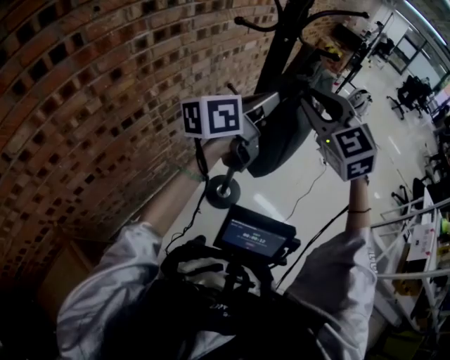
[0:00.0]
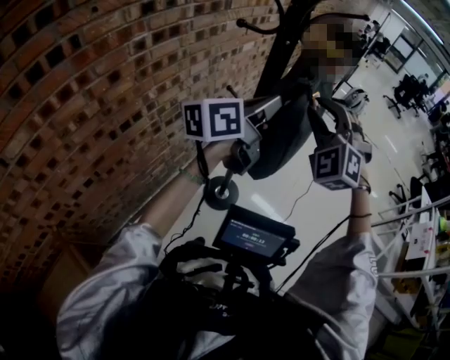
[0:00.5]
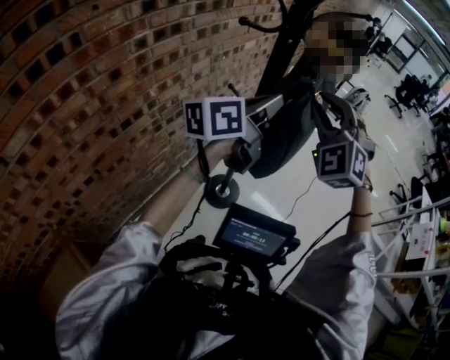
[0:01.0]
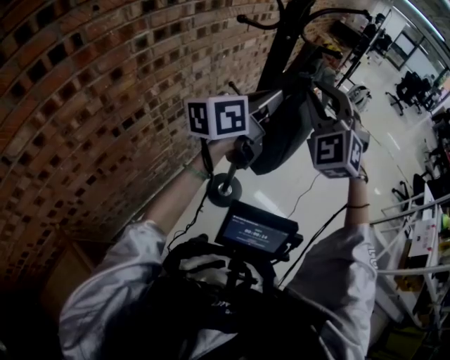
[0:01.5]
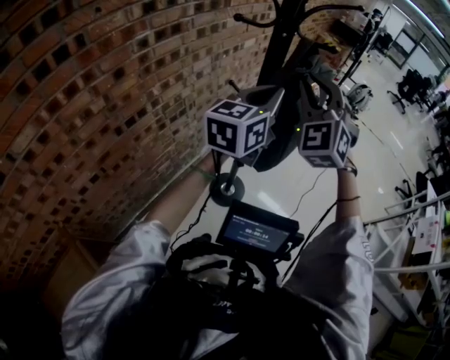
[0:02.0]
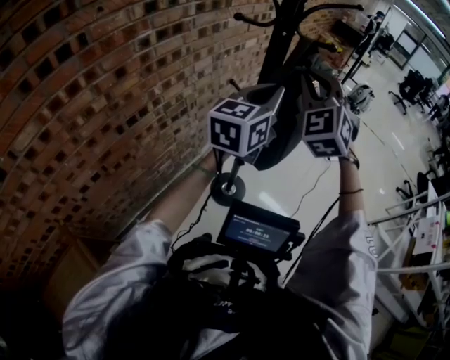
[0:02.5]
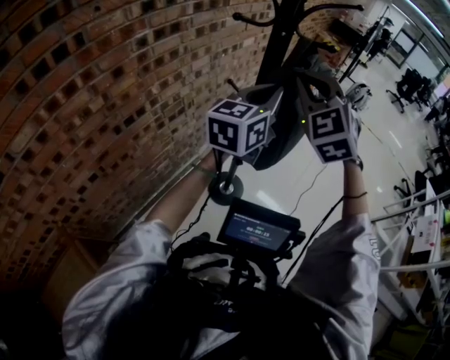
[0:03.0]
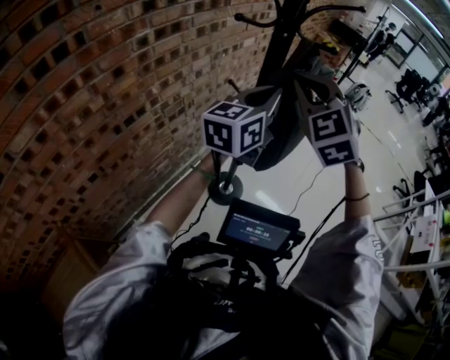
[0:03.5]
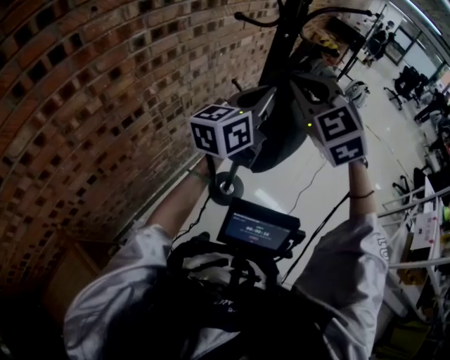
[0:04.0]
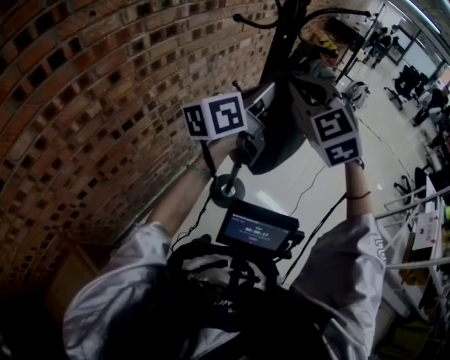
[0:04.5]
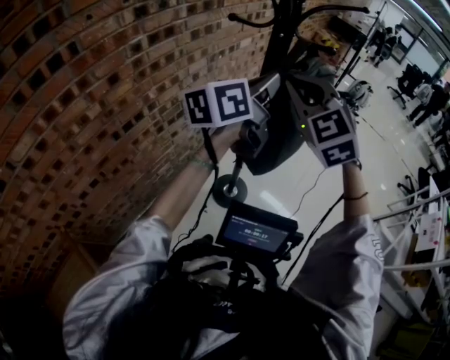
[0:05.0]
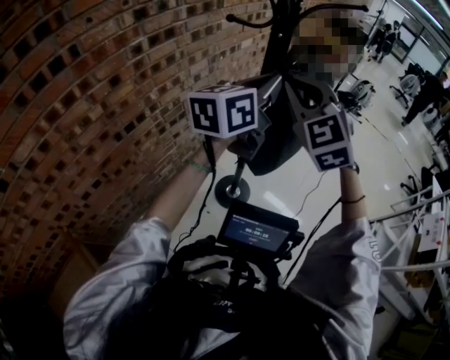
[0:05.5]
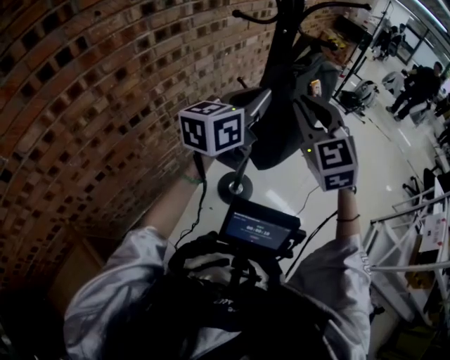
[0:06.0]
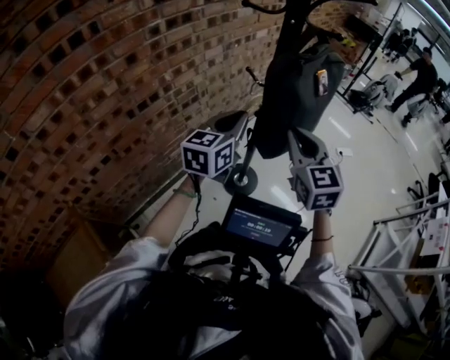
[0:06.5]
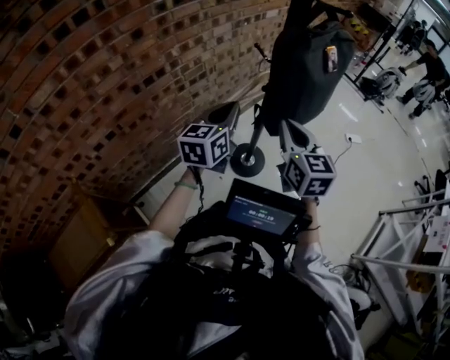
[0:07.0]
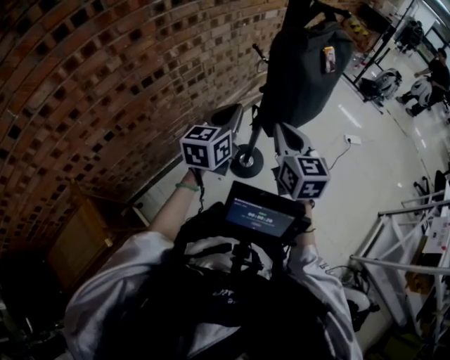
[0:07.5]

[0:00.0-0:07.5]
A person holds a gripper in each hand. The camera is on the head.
0:00.0 to 0:02.0: The right gripper turns by roughly 30 degrees. The left gripper changes its angle by some 30 degrees.
0:02.0 to 0:04.0: The right gripper turns by about 20 degrees.
0:04.0 to 0:05.5: There are only small adjustments of the grippers.
0:05.5 to 0:07.5: The right gripper heads downward and backward, covering approximately 20 cm, and rotates around the line of its fingers by some 50 degrees, clockwise from behind; the left gripper heads downward, to the left and backward, covering approximately 25 cm, and changes its angle by roughly 30 degrees.

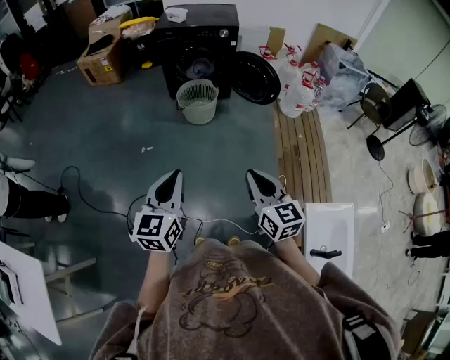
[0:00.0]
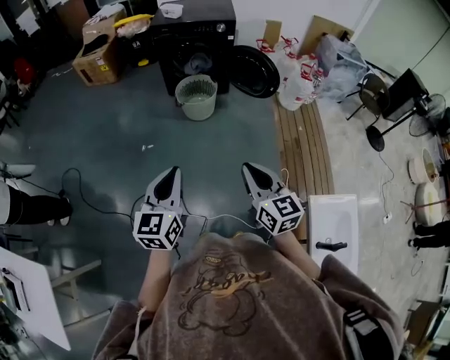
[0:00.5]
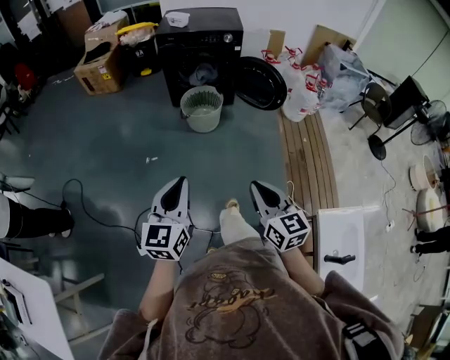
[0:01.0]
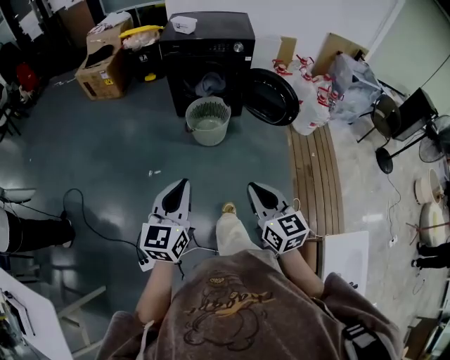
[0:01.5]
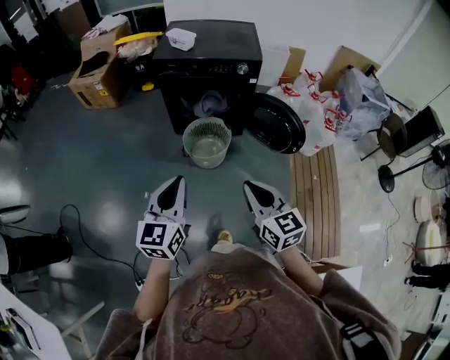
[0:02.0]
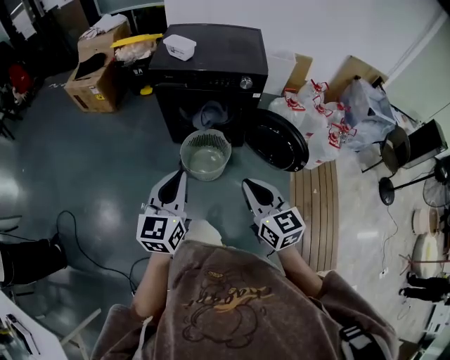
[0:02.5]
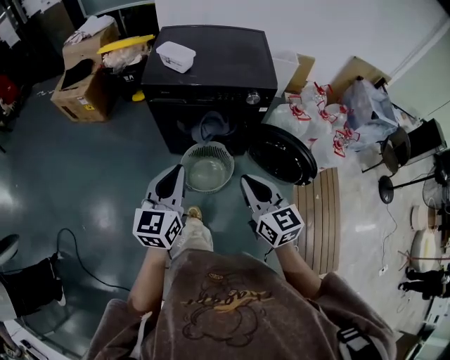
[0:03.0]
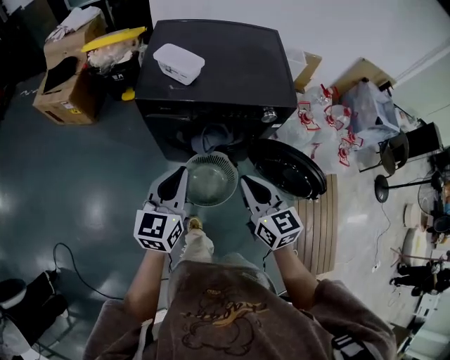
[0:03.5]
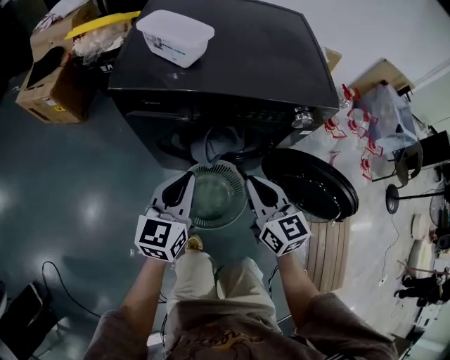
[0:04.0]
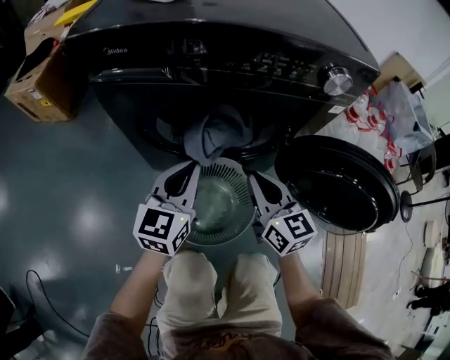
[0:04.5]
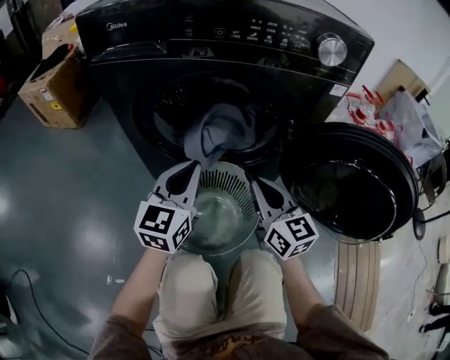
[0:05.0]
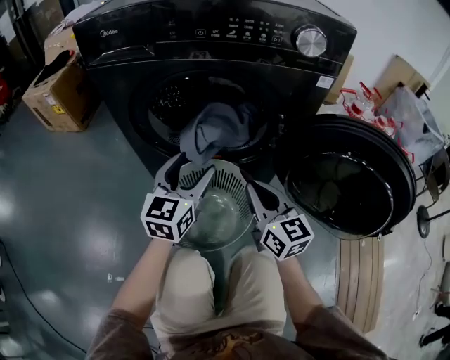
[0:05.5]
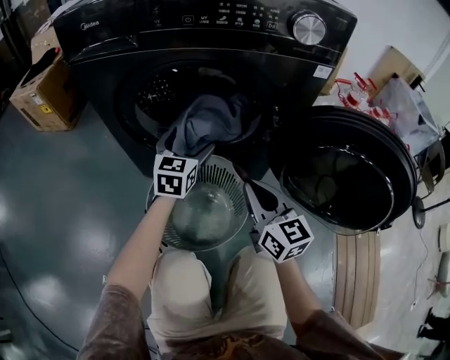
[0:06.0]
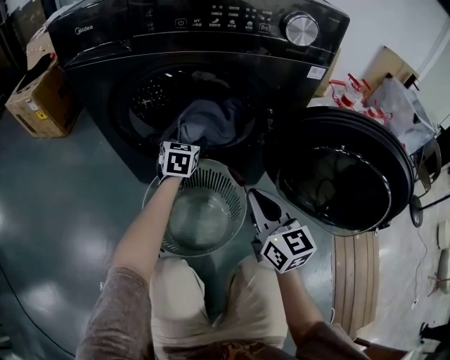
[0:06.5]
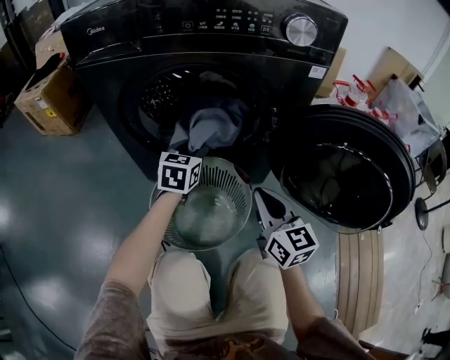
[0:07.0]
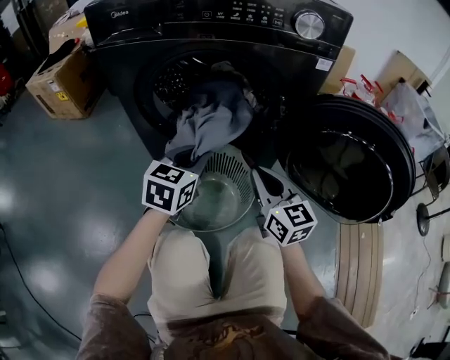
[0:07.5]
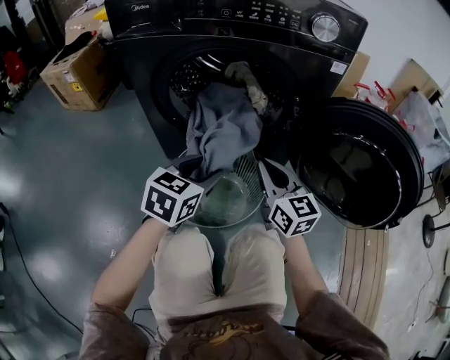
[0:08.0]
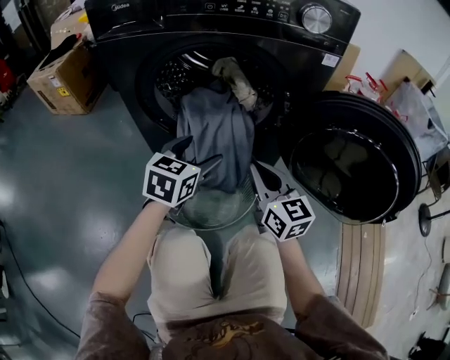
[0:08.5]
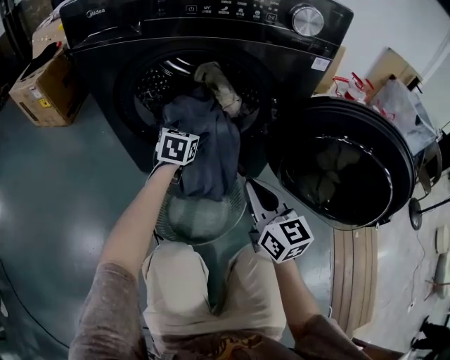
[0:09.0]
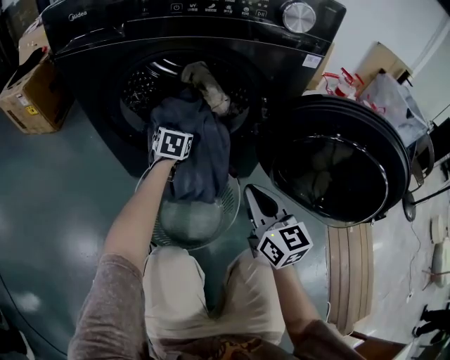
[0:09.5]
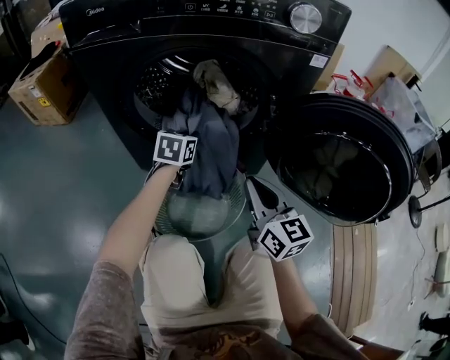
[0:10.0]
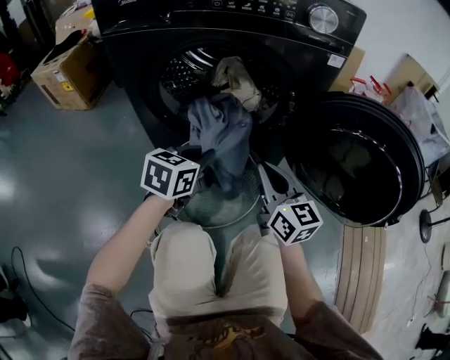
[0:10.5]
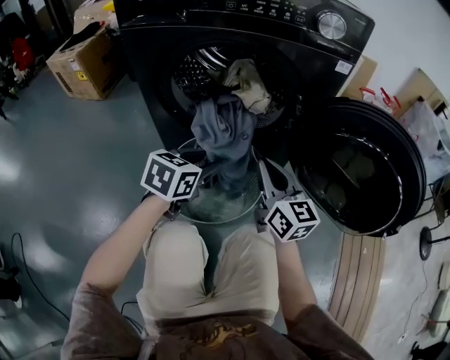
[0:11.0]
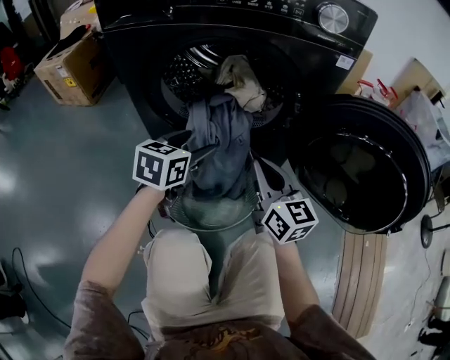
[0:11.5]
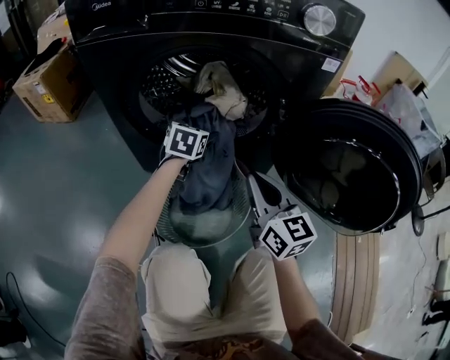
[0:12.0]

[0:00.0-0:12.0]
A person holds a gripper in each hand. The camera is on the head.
0:00.0 to 0:02.0: Both grippers move forward, some 40 cm.
0:02.0 to 0:04.0: Both grippers are carried forward, approximately 50 cm. Both grippers move downward, about 25 cm.
0:04.0 to 0:06.0: The right gripper goes approximately 25 cm downward. The left gripper moves downward and forward, approximately 30 cm, and opens up.
0:06.0 to 0:08.0: The left gripper shifts approximately 20 cm backward, and closes.
0:08.0 to 0:10.0: The left gripper heads forward and downward, covering approximately 20 cm, and closes up.
0:10.0 to 0:12.0: The left gripper reaches about 15 cm backward, then returns, and opens up.

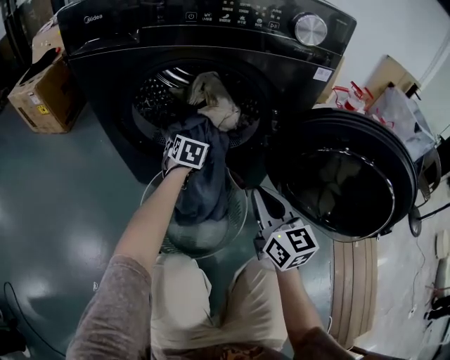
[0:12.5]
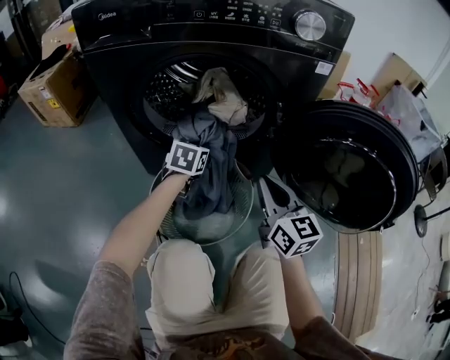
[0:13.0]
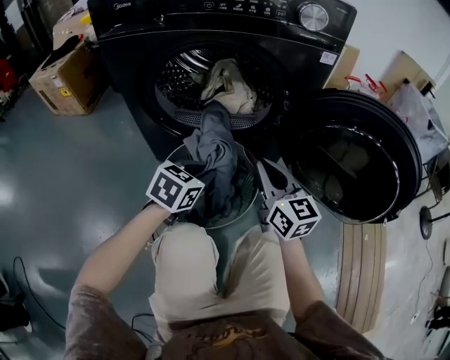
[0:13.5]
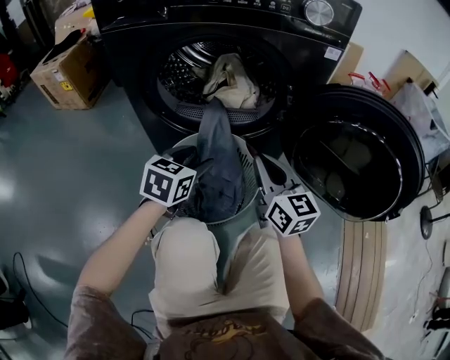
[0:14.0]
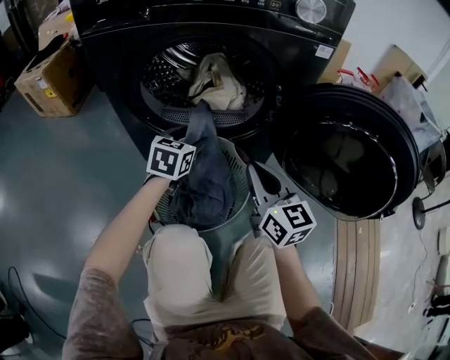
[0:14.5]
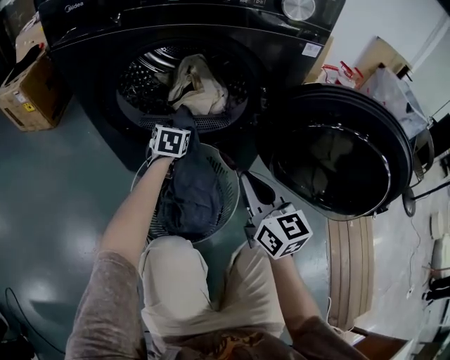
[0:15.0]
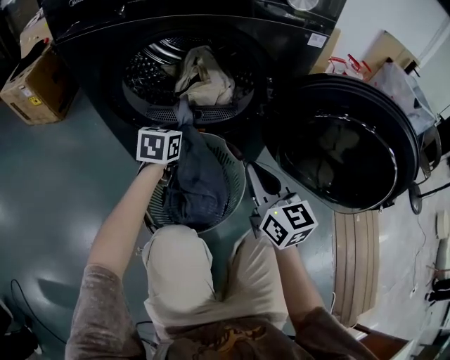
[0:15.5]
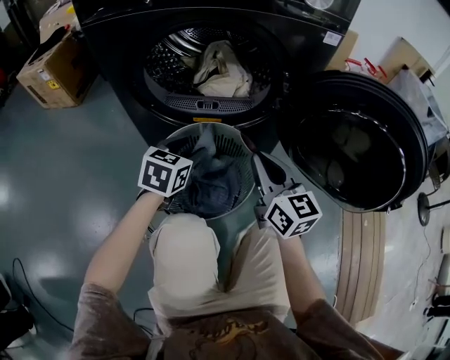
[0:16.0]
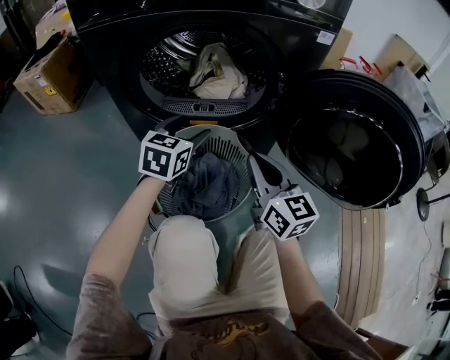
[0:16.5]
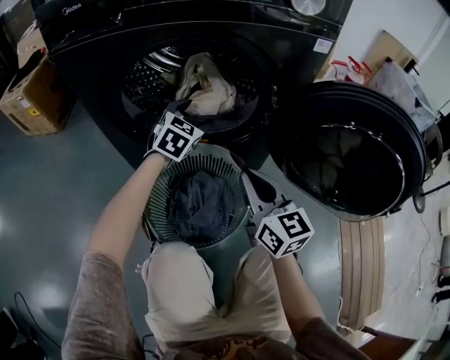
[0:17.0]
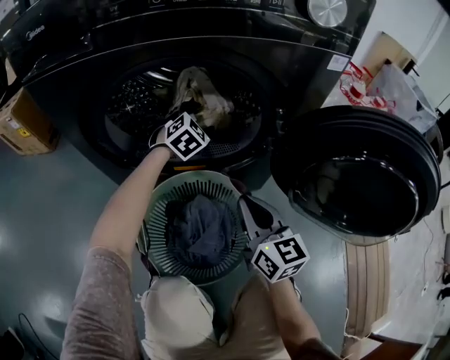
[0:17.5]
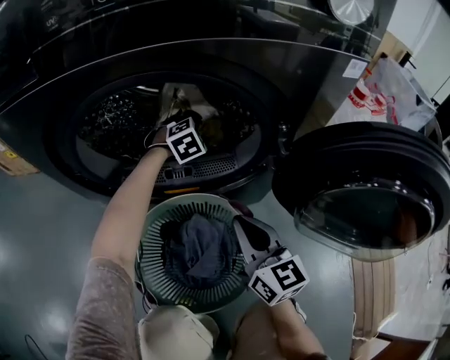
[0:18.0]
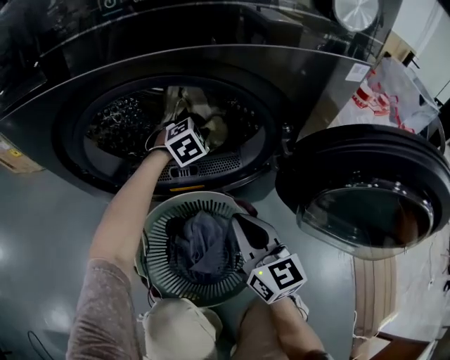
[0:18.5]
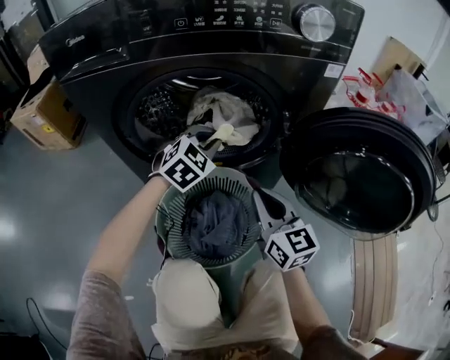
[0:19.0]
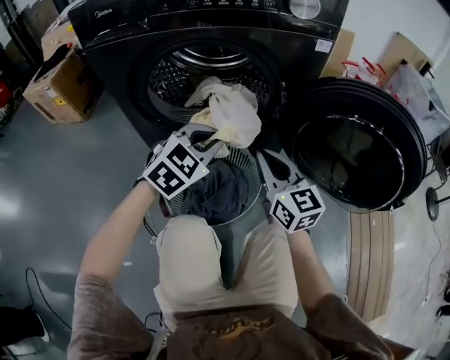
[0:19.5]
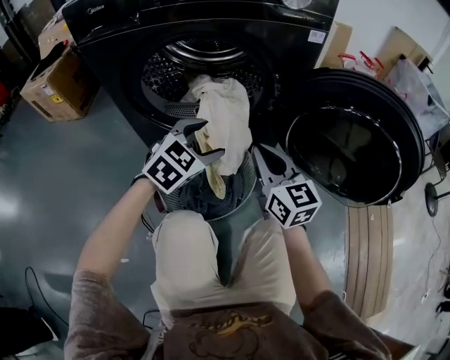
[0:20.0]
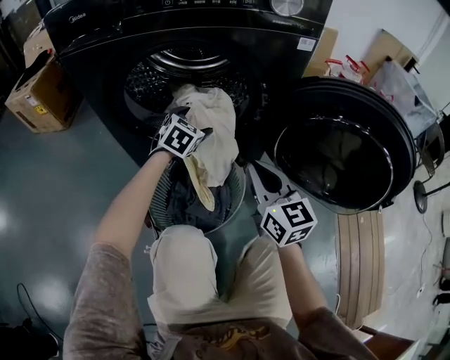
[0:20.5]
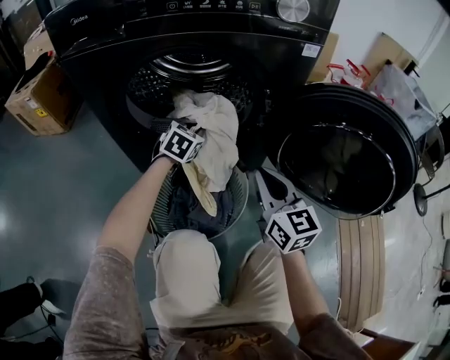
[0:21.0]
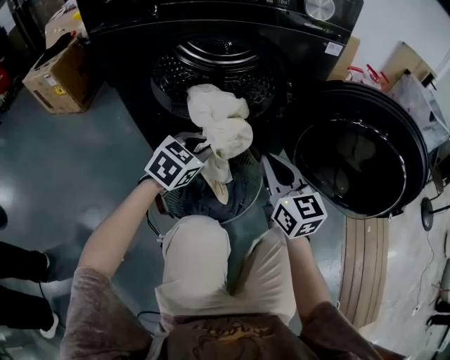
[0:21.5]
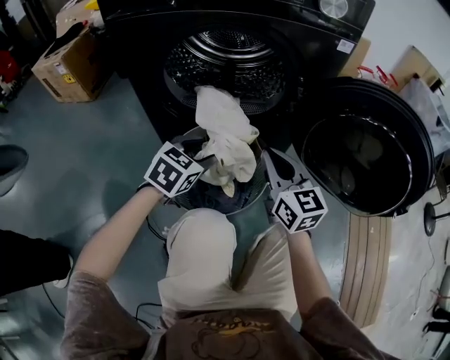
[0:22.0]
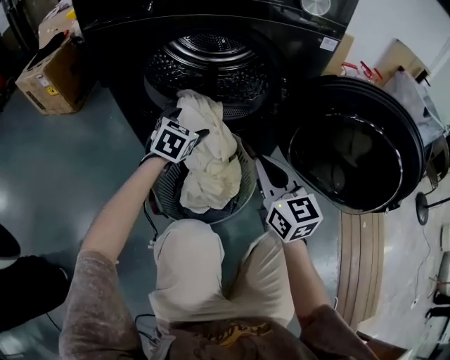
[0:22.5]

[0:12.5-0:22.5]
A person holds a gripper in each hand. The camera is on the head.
0:12.5 to 0:14.5: The left gripper shifts roughly 15 cm backward and upward, and closes, then reopens.
0:14.5 to 0:16.5: The left gripper goes forward and backward, roughly 20 cm each way, reversing 2 times, and closes and opens again.
0:16.5 to 0:18.5: The right gripper heads forward and downward, covering about 10 cm. Meanwhile the left gripper heads forward, covering approximately 25 cm, twists roughly 50 degrees clockwise, seen from behind, and closes up.
0:18.5 to 0:20.5: The left gripper is displaced backward by some 15 cm, swivels approximately 30 degrees, and opens up; the right gripper is displaced upward, backward and to the right by approximately 10 cm.
0:20.5 to 0:22.5: The left gripper goes some 5 cm to the left, goes backward and returns, roughly 20 cm each way, and closes, then reopens.
